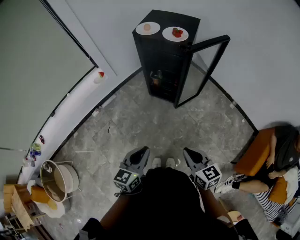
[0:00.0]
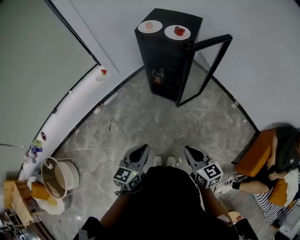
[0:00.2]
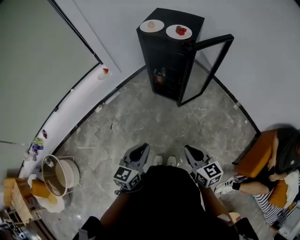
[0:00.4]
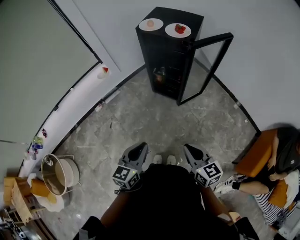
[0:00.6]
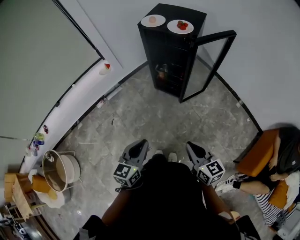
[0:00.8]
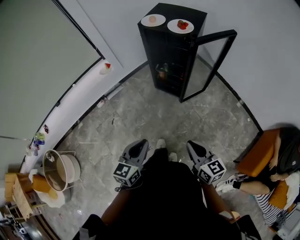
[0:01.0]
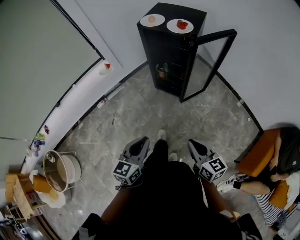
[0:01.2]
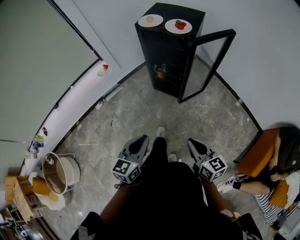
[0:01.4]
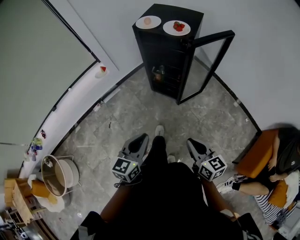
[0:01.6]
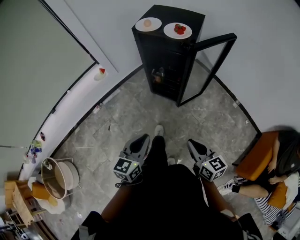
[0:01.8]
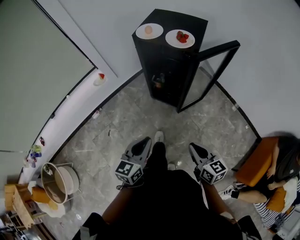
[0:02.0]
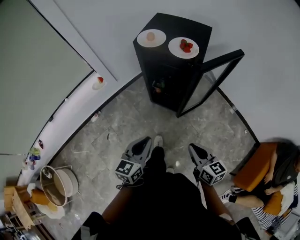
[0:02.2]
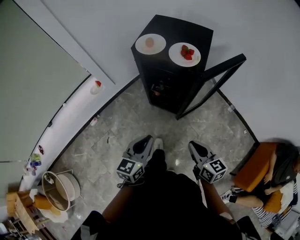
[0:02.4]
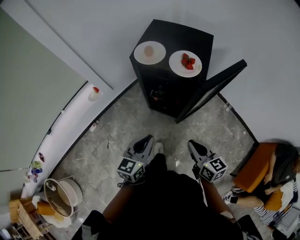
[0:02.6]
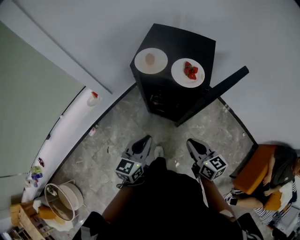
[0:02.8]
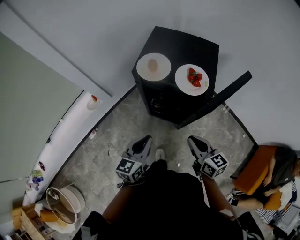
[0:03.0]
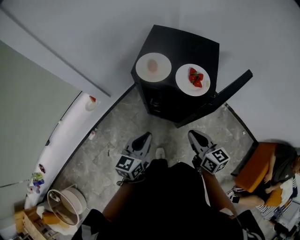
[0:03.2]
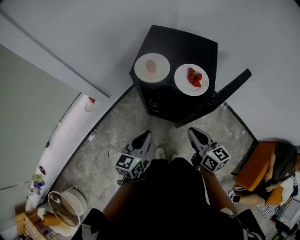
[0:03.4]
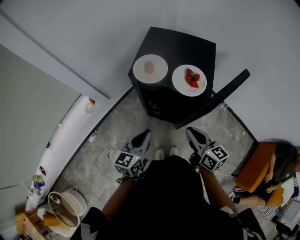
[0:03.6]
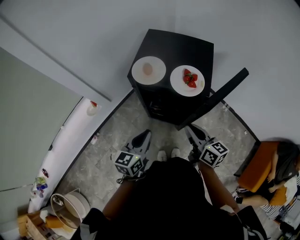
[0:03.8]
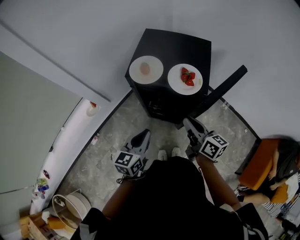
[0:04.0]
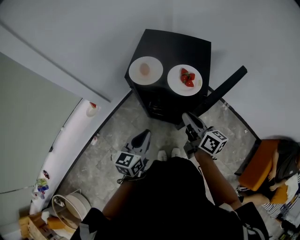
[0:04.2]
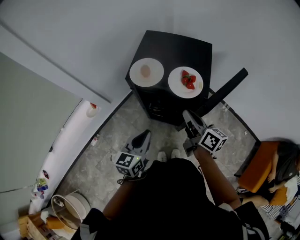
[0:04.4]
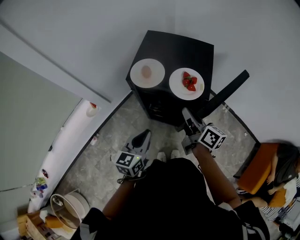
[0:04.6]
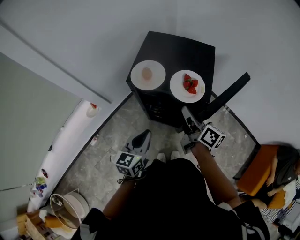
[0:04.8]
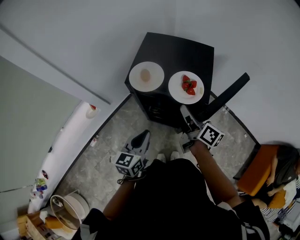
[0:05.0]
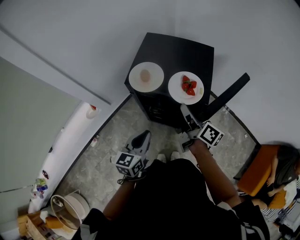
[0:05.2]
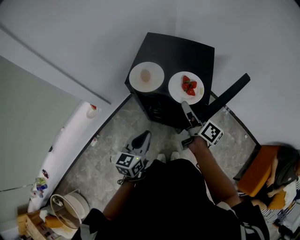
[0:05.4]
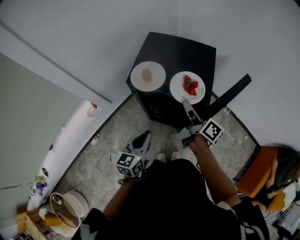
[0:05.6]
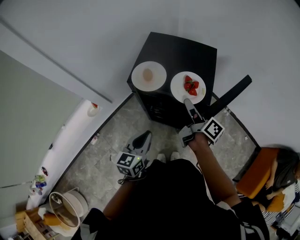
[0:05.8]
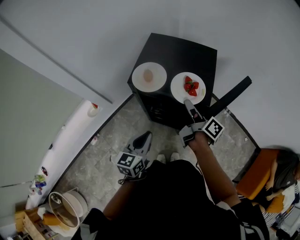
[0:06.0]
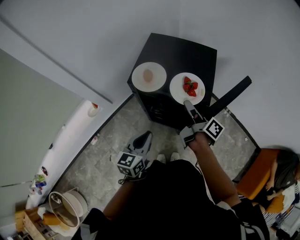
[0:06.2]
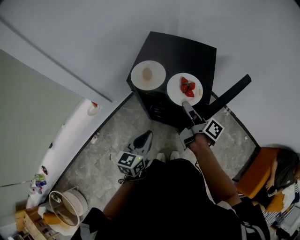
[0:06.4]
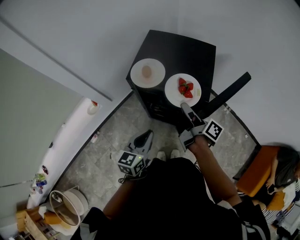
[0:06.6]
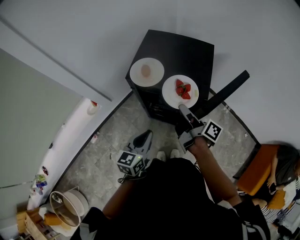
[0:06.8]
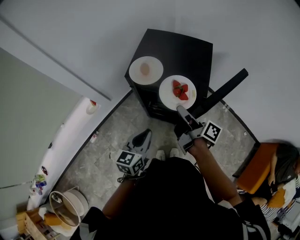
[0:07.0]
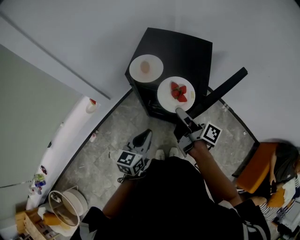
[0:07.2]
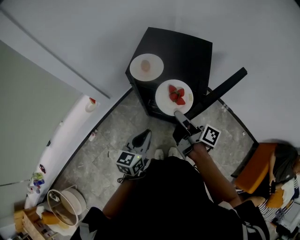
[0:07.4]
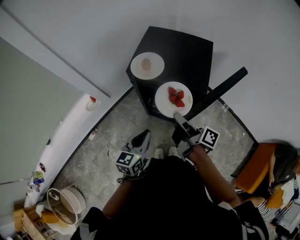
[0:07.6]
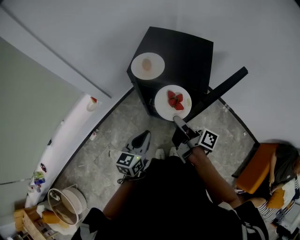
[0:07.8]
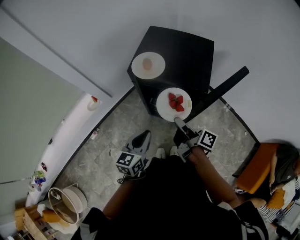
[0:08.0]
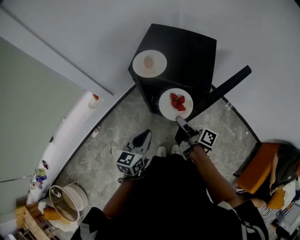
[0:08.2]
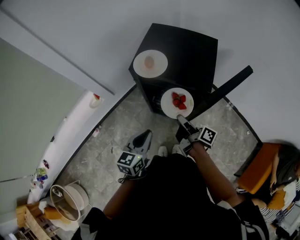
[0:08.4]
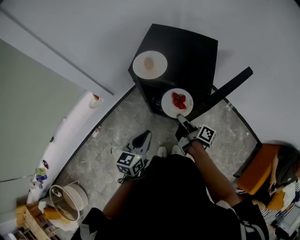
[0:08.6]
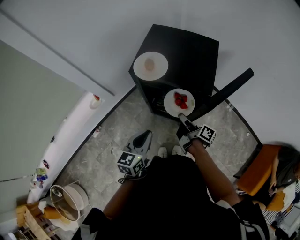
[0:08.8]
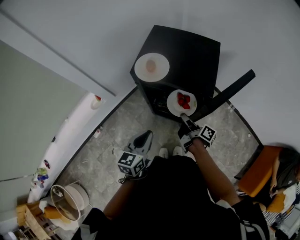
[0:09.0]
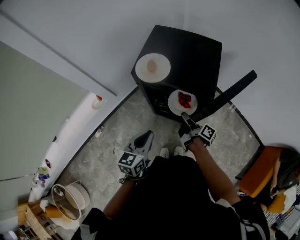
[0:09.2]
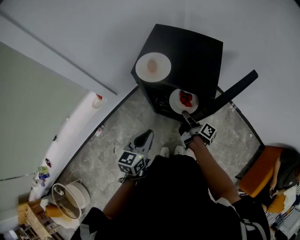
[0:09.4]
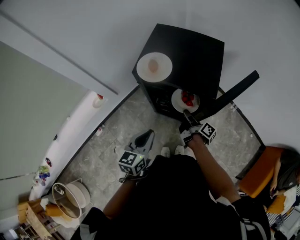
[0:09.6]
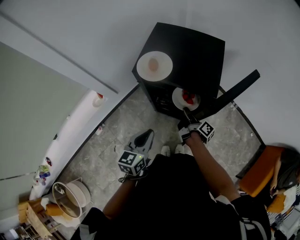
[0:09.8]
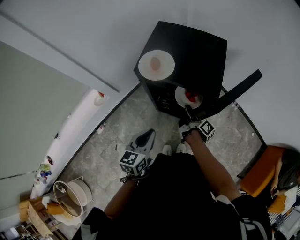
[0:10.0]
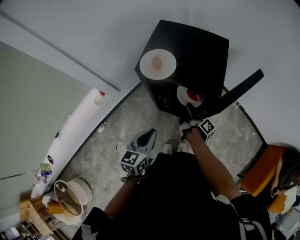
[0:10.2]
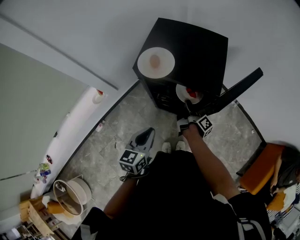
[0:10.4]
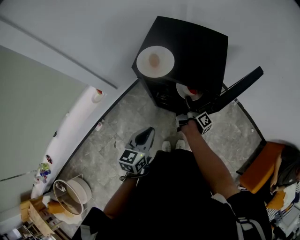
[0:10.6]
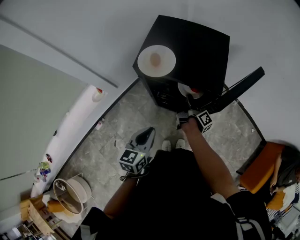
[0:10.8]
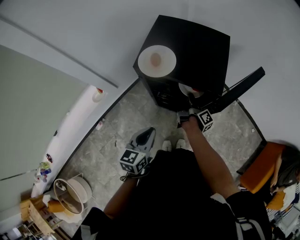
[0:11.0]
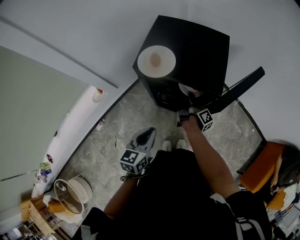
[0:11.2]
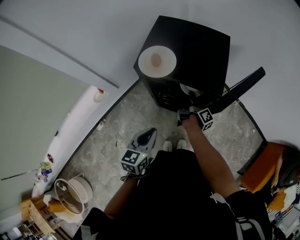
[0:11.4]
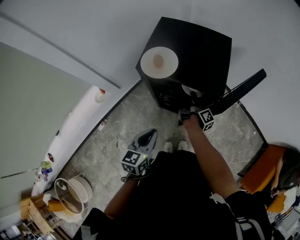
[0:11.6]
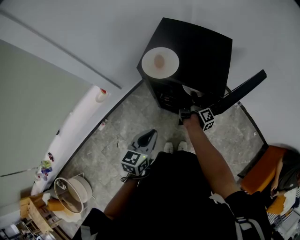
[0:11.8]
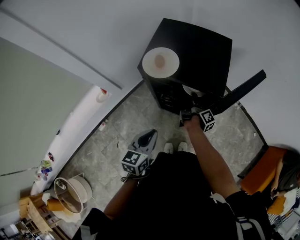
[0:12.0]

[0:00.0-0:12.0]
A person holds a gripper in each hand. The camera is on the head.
0.0 to 1.6 s: The left gripper moves roughly 5 cm.
1.6 to 3.0 s: The left gripper ends up approximately 35 cm from where it was.
6.0 to 7.6 s: The left gripper changes place by roughly 5 cm.

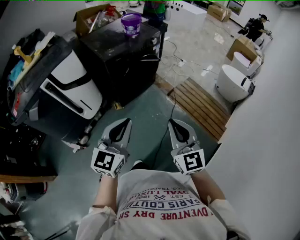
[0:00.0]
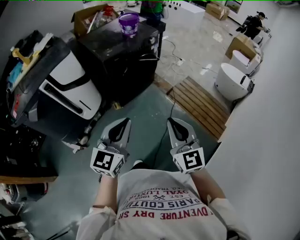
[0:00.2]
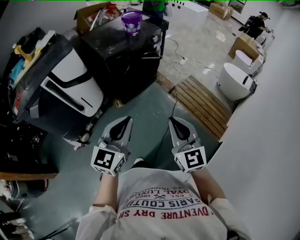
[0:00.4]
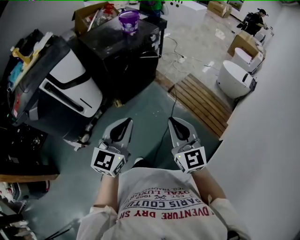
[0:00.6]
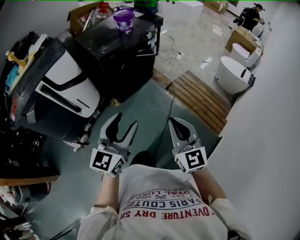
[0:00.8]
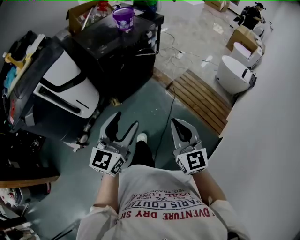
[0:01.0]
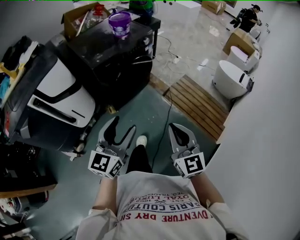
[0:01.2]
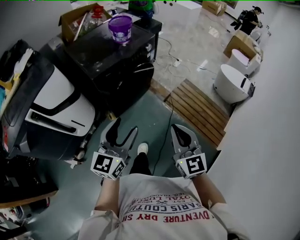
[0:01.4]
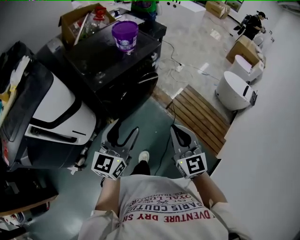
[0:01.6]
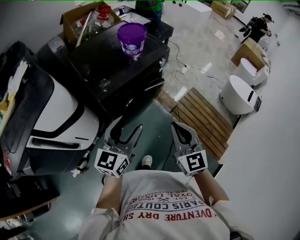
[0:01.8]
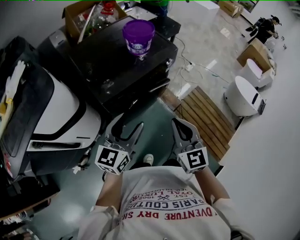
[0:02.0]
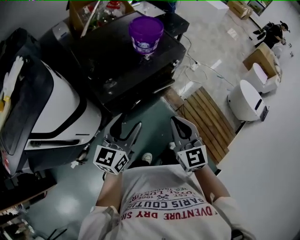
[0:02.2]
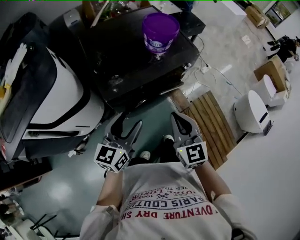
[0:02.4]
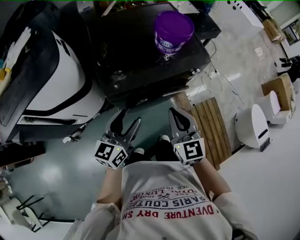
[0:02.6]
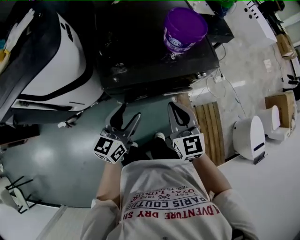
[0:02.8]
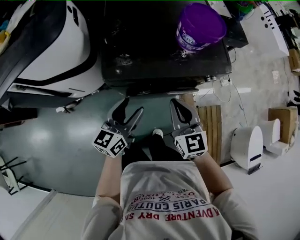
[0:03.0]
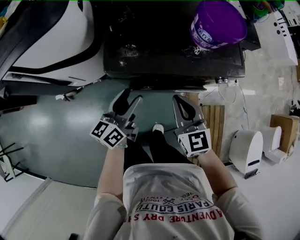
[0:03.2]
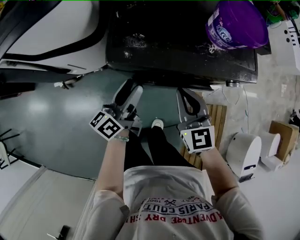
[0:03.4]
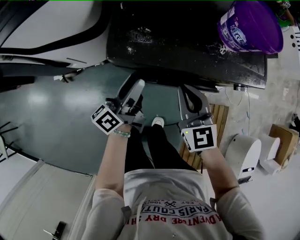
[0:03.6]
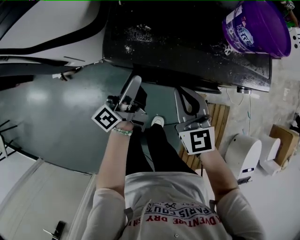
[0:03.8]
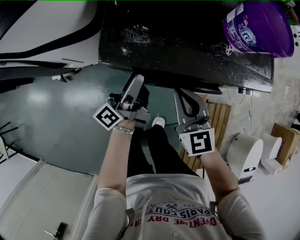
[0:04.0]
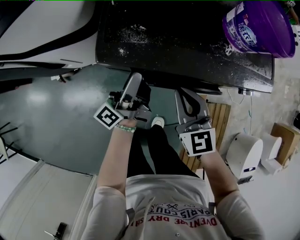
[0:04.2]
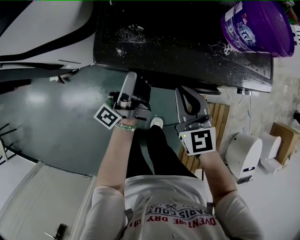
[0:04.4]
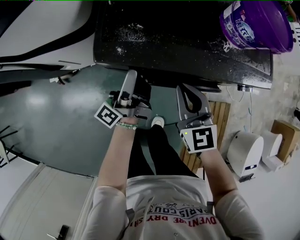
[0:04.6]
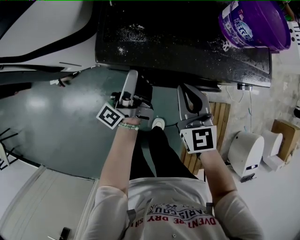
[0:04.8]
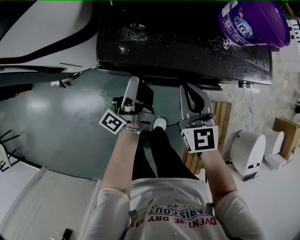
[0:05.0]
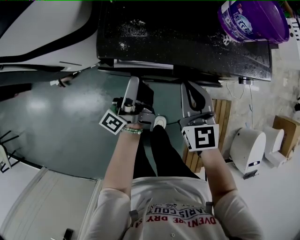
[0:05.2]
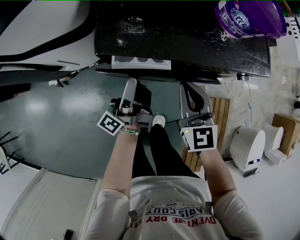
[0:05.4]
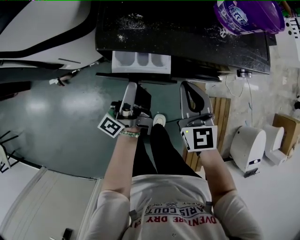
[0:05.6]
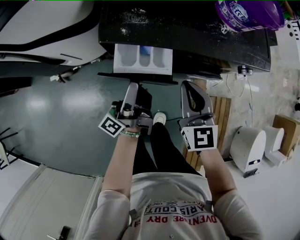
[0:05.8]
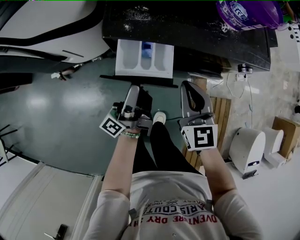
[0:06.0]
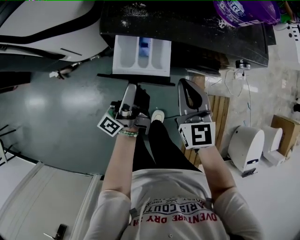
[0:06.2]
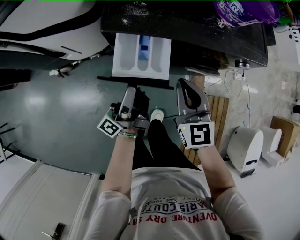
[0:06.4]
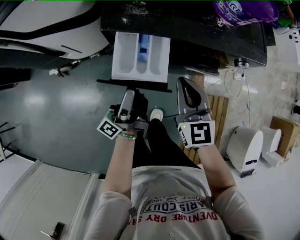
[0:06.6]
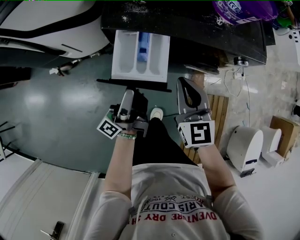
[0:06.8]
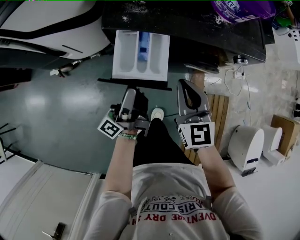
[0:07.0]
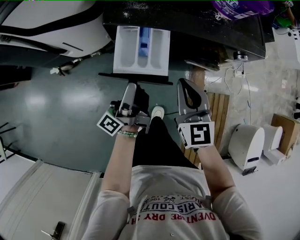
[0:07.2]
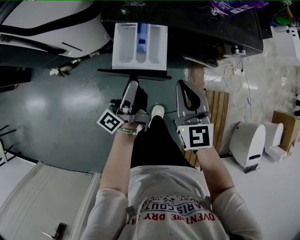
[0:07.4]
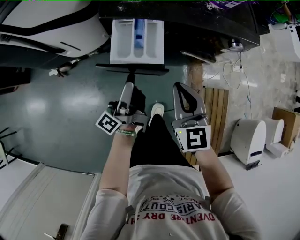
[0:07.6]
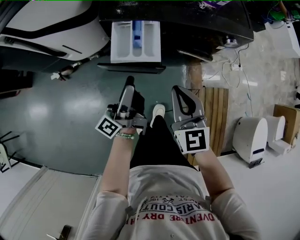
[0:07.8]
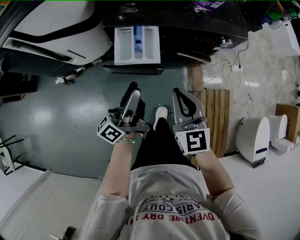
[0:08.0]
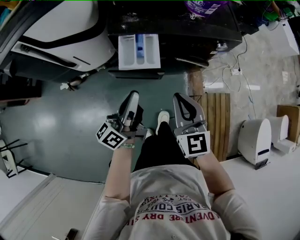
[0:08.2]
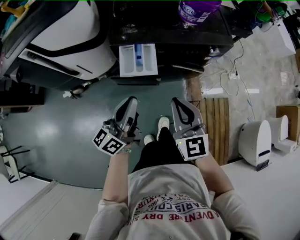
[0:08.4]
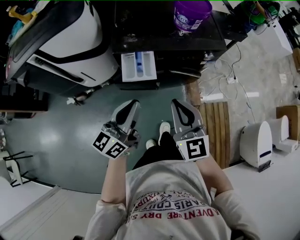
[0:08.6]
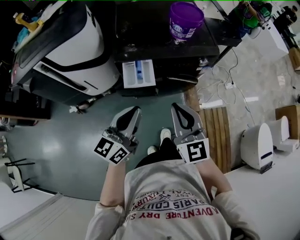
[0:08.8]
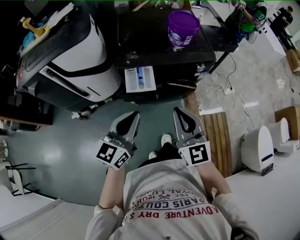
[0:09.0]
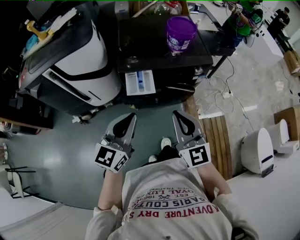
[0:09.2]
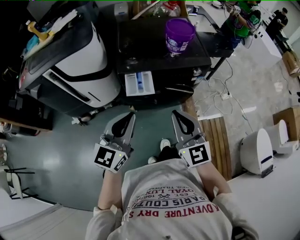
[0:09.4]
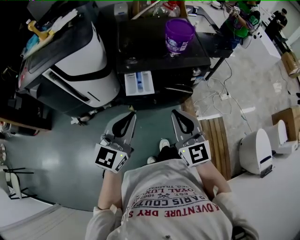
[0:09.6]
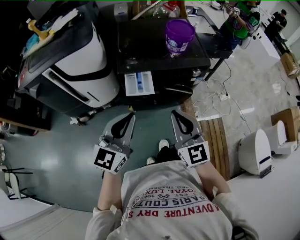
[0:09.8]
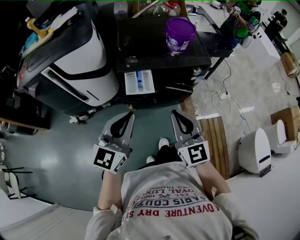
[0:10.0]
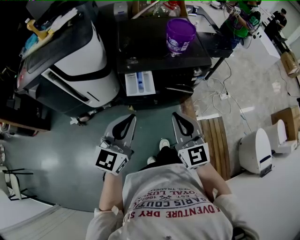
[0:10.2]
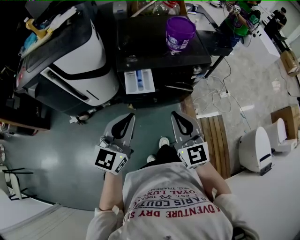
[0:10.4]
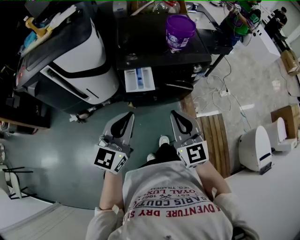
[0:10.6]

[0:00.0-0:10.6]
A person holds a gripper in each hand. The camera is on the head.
0.0 to 1.6 s: Both grippers move forward, approximately 30 cm. The left gripper opens.
1.6 to 3.0 s: The left gripper shifts by some 30 cm, and rotates some 40 degrees. The right gripper shifts by approximately 40 cm, and swivels approximately 40 degrees.
3.0 to 4.6 s: The right gripper moves downward and forward, about 15 cm. The left gripper moves forward and downward, approximately 15 cm, and angles its fingers upward, by some 30 degrees.
4.6 to 6.0 s: The left gripper goes approximately 10 cm backward; the right gripper is displaced backward by some 5 cm.
6.0 to 7.6 s: The grippers both shift backward by roughly 10 cm.
7.6 to 9.0 s: The two grippers go about 25 cm upward and backward. The left gripper twists about 70 degrees clockwise, seen from behind, and closes.
9.0 to 10.6 s: The grippers make only small movements.

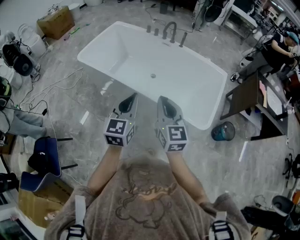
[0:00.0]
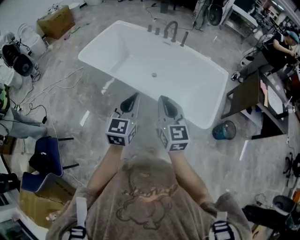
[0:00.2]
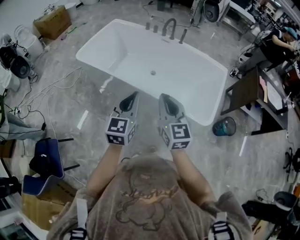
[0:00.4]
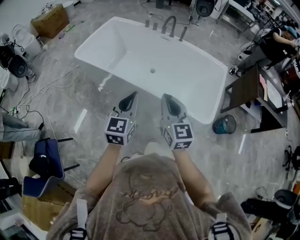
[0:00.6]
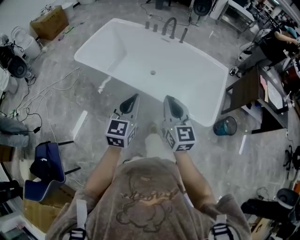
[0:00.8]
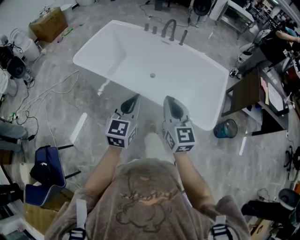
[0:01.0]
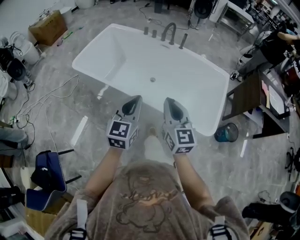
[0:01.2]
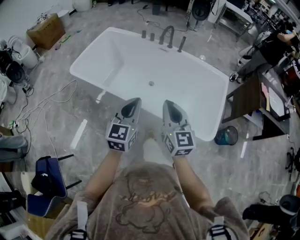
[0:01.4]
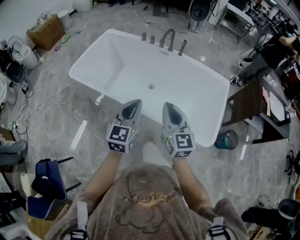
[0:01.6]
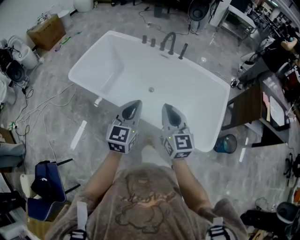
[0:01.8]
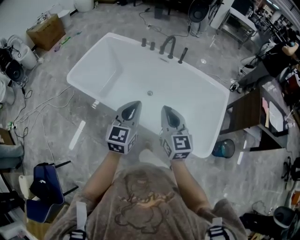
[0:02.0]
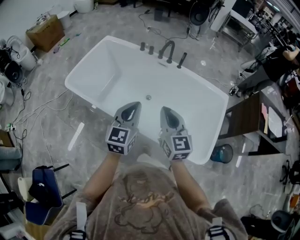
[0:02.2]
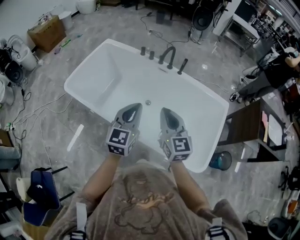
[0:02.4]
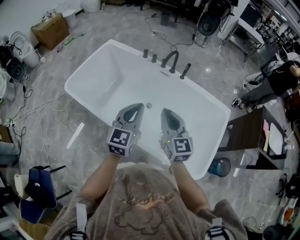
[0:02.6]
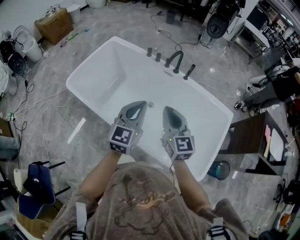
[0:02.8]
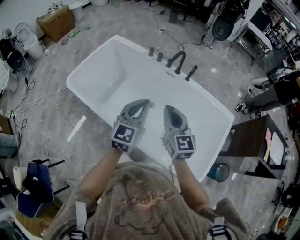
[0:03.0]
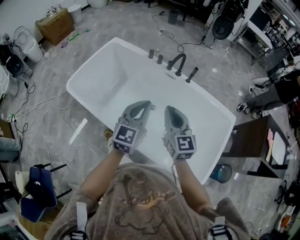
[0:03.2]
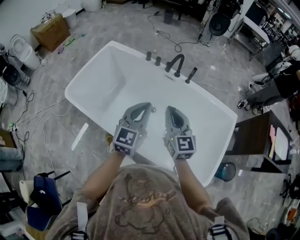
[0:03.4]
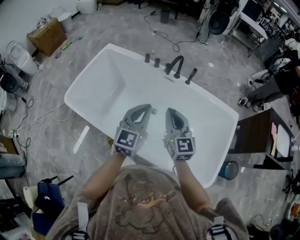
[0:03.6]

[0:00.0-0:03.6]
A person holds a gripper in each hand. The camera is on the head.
0.0 to 1.8 s: Both grippers move forward, about 20 cm.
1.8 to 3.6 s: Both grippers travel together forward, roughly 25 cm.
